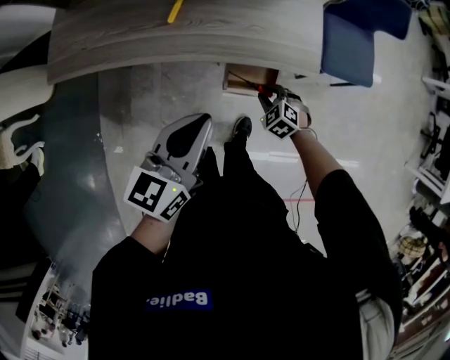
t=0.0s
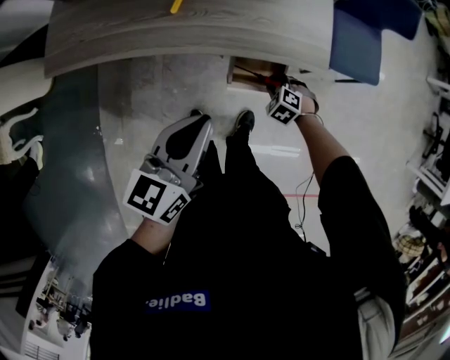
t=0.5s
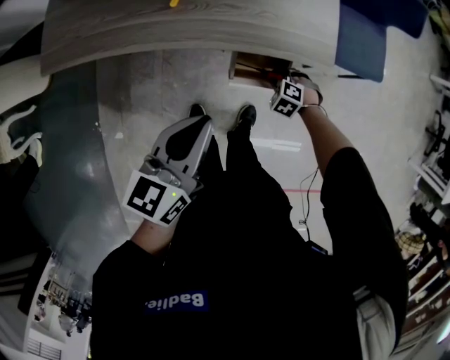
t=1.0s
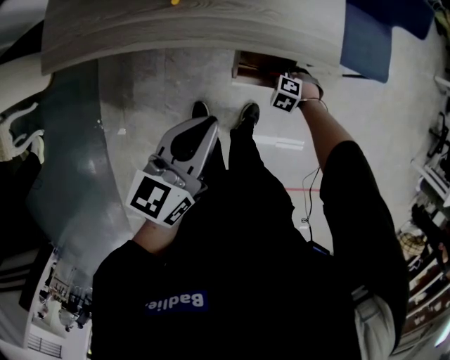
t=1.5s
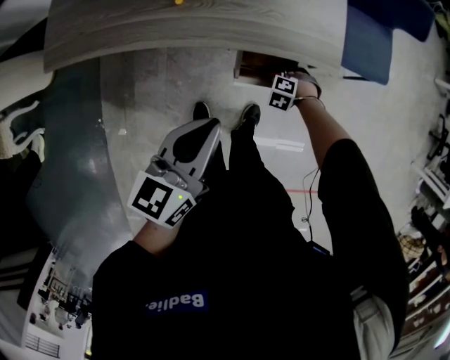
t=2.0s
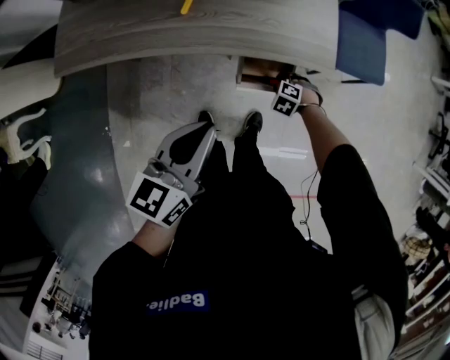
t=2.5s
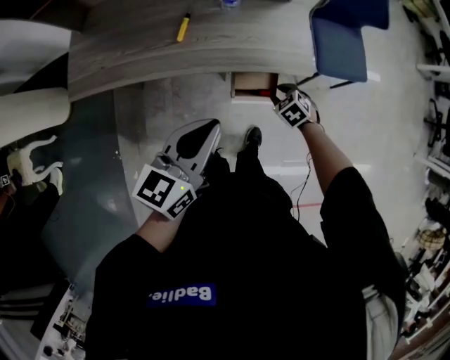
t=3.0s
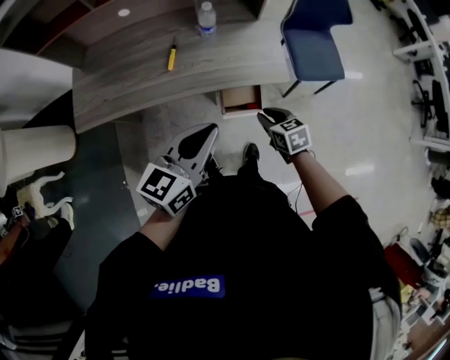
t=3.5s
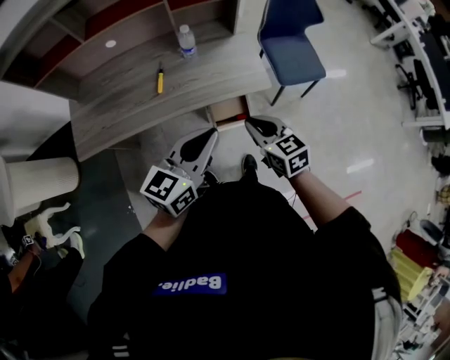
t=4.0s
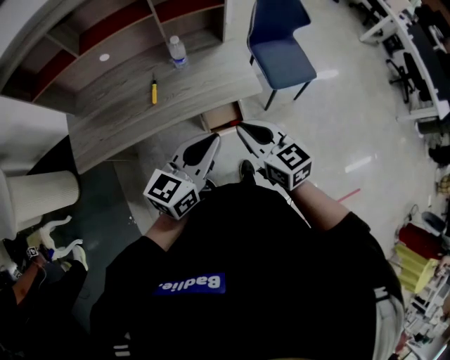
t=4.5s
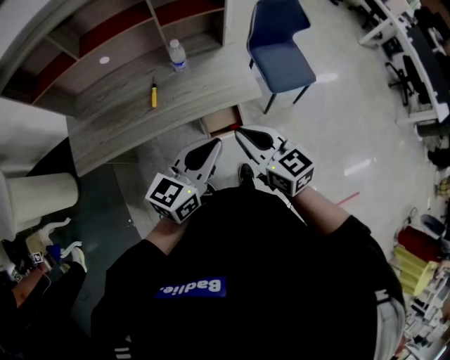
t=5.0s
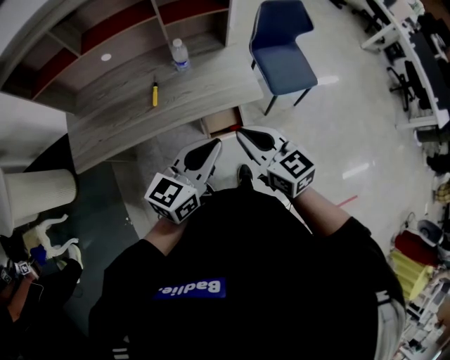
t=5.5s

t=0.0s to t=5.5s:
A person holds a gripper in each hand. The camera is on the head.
t=0.0s to t=2.0s: The right gripper moves downward, about 10 cm, and turns by some 30 degrees.
t=2.0s to t=3.5s: The left gripper shifts approximately 15 cm upward. The right gripper moves upward, some 25 cm, and rolls clockwise, seen from behind, by some 70 degrees.
t=3.5s to t=5.5s: The right gripper is displaced upward by approximately 25 cm, and points its fingers roughly 30 degrees further upward; the left gripper heads to the right, covering about 5 cm.

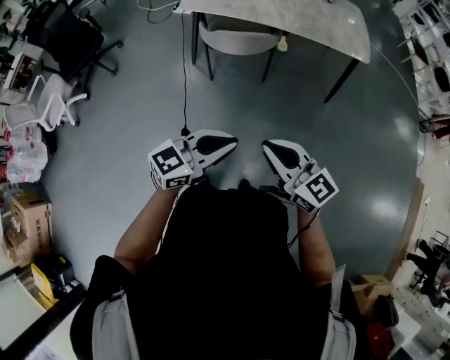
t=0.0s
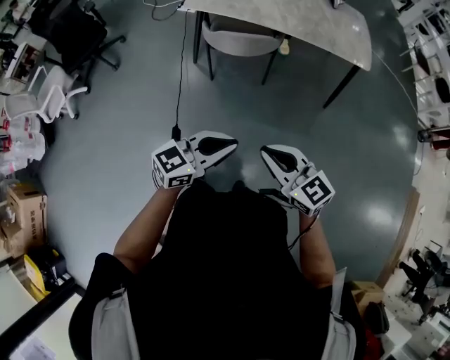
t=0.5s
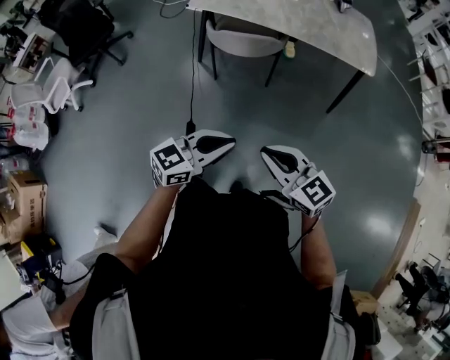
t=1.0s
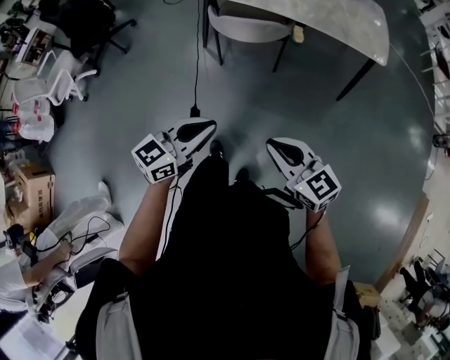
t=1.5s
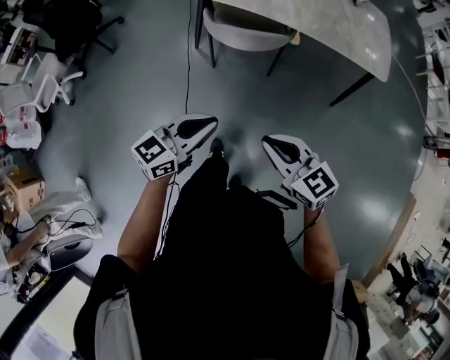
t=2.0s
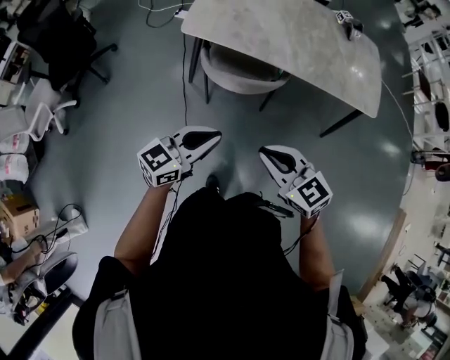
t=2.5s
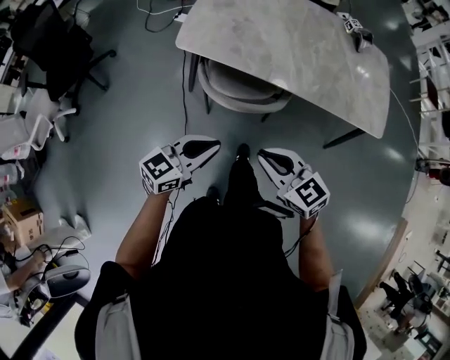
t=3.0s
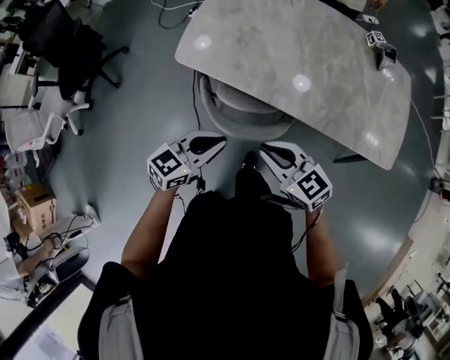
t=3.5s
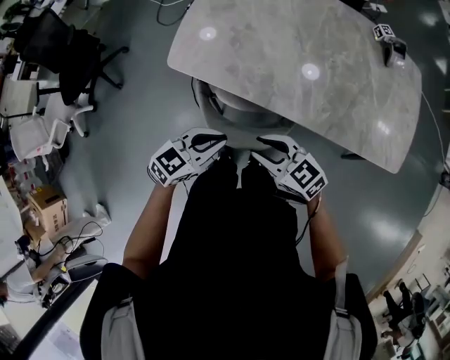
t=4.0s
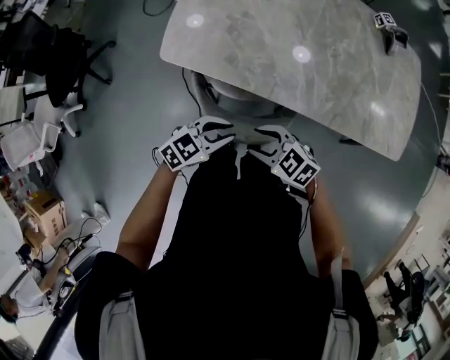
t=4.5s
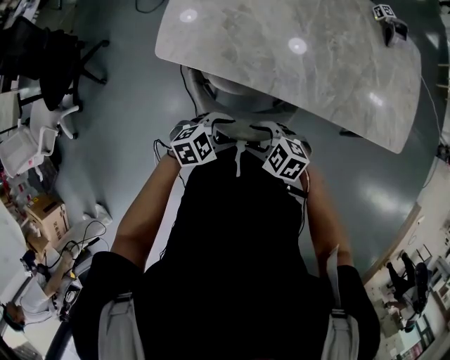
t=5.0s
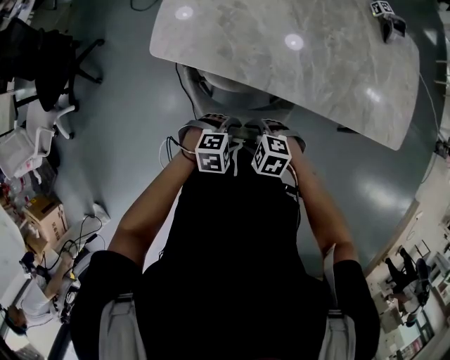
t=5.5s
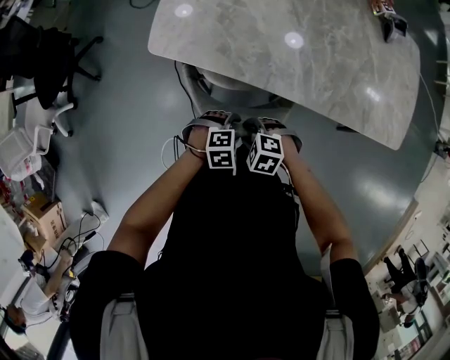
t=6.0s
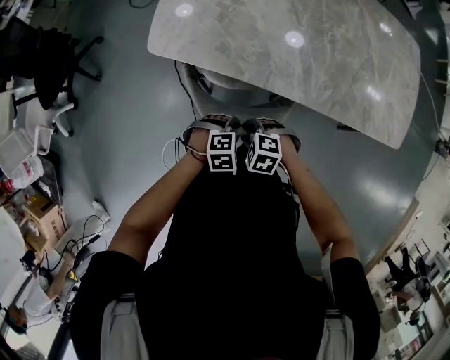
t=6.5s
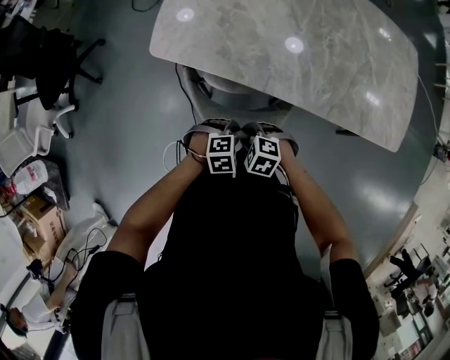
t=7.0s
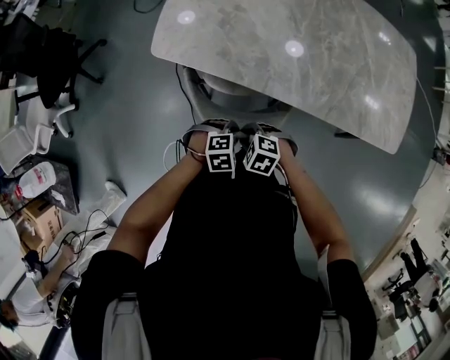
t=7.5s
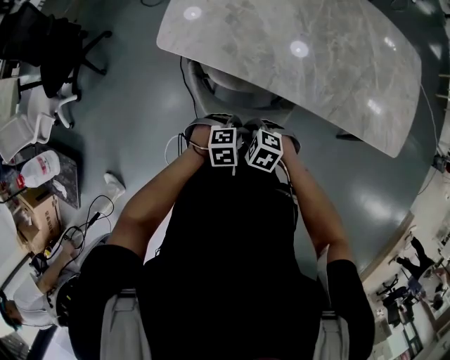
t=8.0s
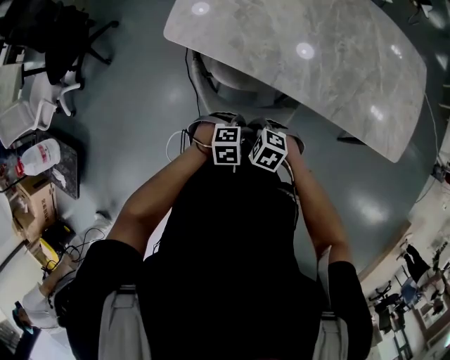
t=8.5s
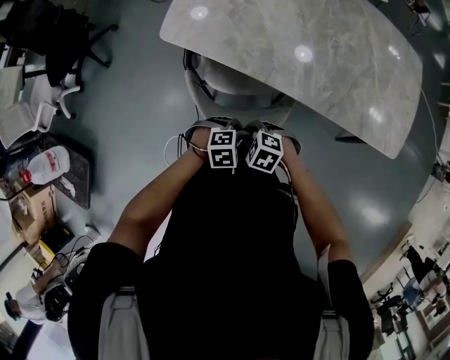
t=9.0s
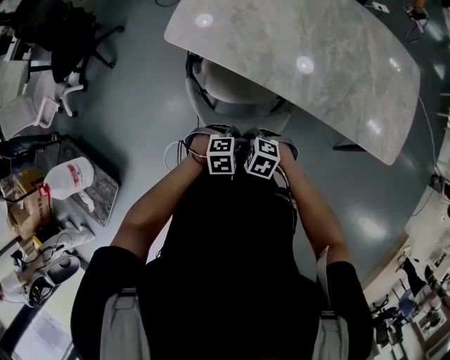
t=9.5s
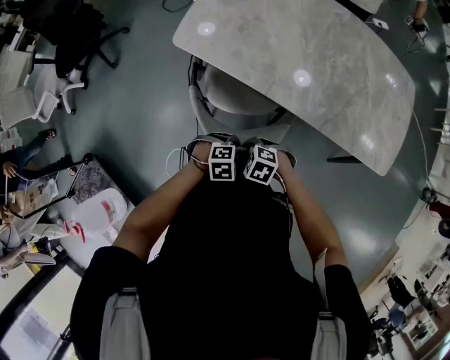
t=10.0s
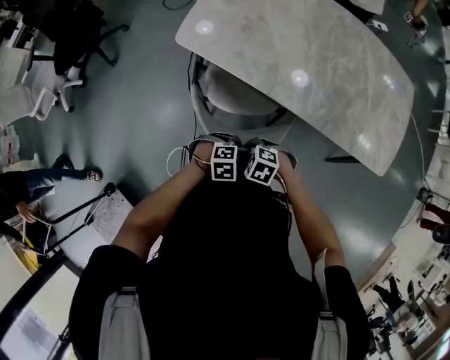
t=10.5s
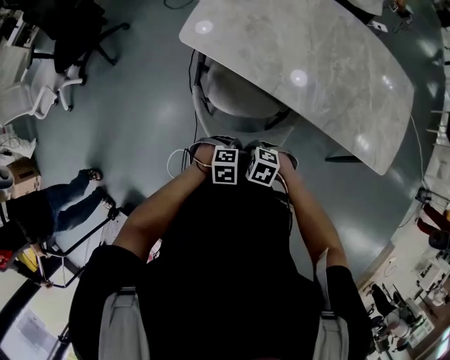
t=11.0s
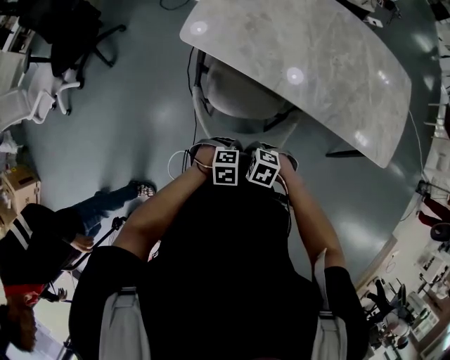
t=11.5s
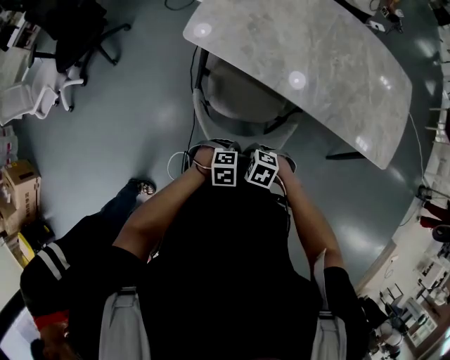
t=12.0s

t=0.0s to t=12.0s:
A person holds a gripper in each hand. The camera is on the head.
t=0.0s to t=2.0s: The right gripper moves forward and downward, roughly 15 cm; the left gripper heads forward, covering some 15 cm.
t=2.0s to t=4.0s: Both grippers are carried roughly 40 cm. The right gripper opens. The left gripper rotates roughly 20 degrees.
t=4.0s to t=6.0s: The grippers both shift downward by some 15 cm. The left gripper points its fingers roughly 40 degrees further downward, and opens its fingers, while the right gripper tilts its fingers about 40 degrees downward.
t=6.0s to t=8.0s: The left gripper closes its fingers.
t=8.0s to t=10.0s: The left gripper changes place by roughly 10 cm, while the right gripper ends up some 10 cm from where it was.
t=10.0s to t=12.0s: The right gripper ends up about 5 cm from where it was. The left gripper ends up approximately 5 cm from where it was.

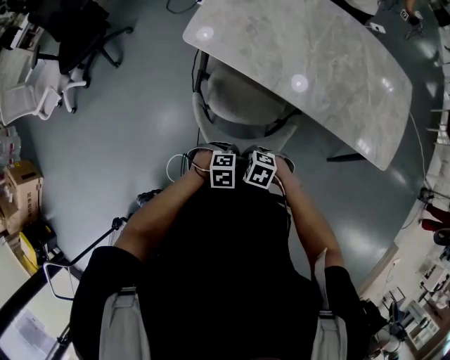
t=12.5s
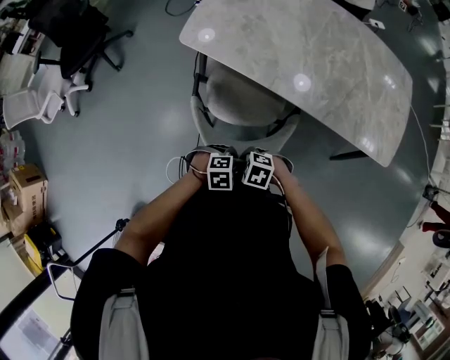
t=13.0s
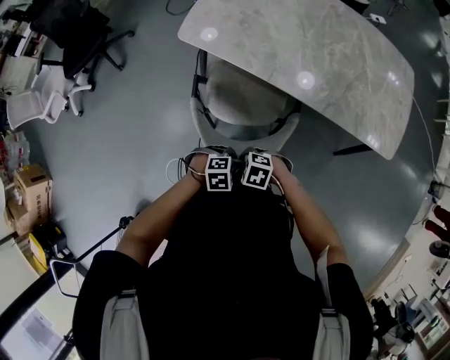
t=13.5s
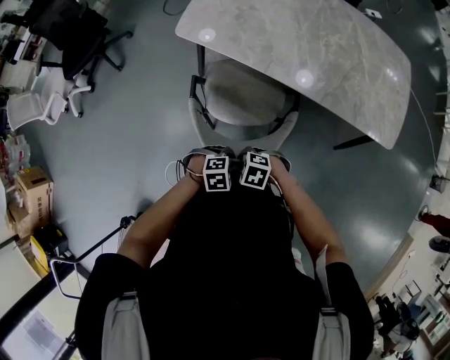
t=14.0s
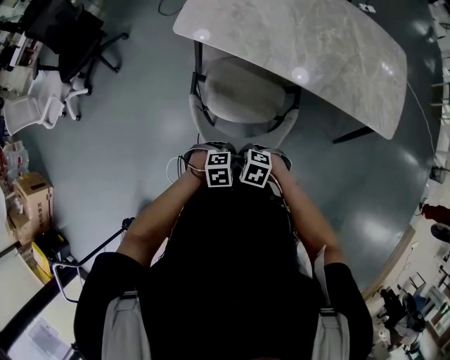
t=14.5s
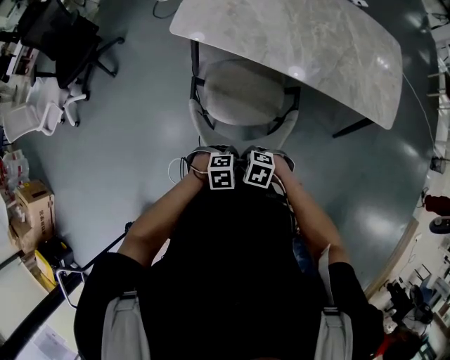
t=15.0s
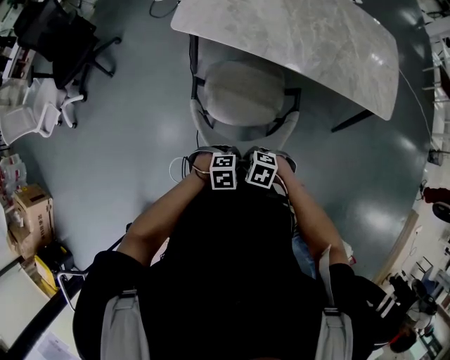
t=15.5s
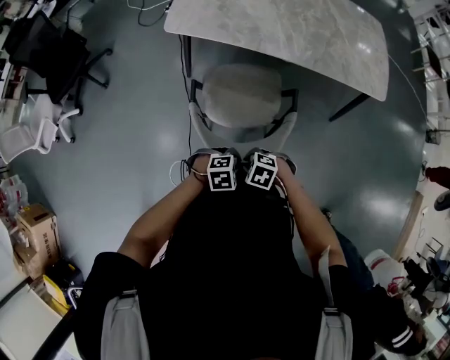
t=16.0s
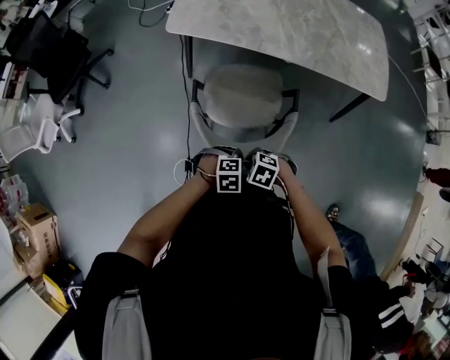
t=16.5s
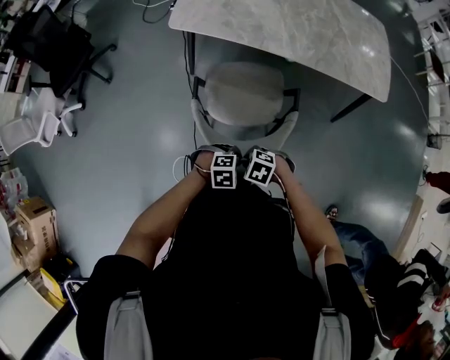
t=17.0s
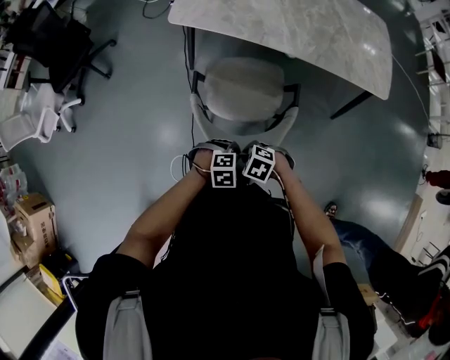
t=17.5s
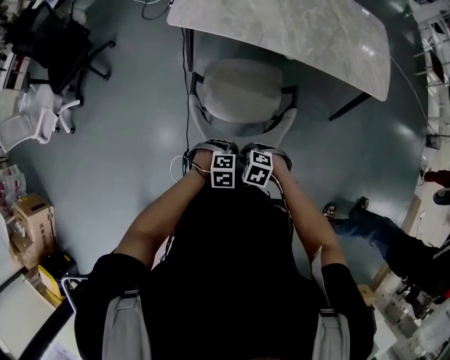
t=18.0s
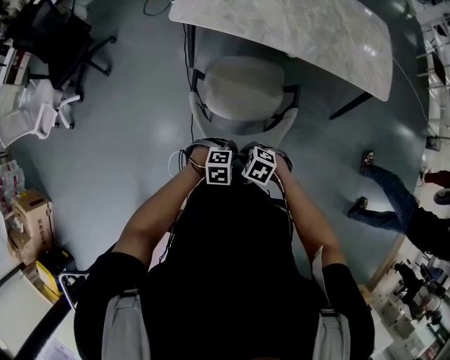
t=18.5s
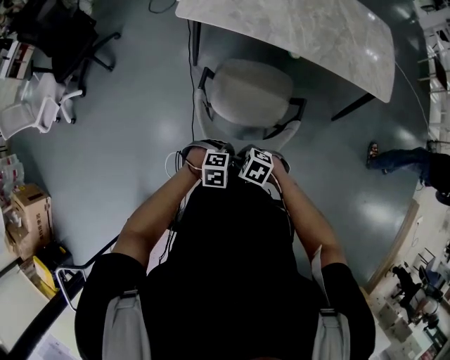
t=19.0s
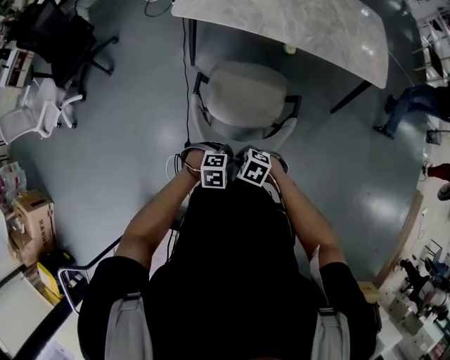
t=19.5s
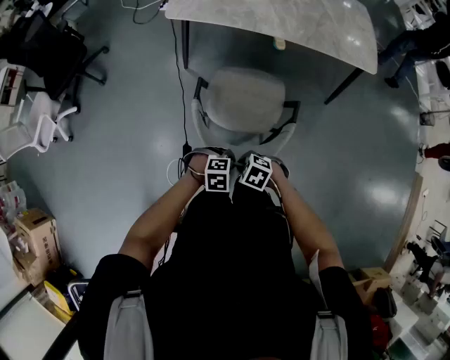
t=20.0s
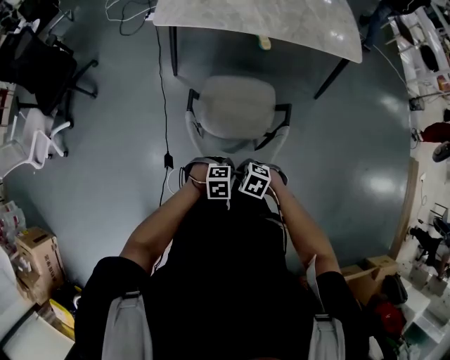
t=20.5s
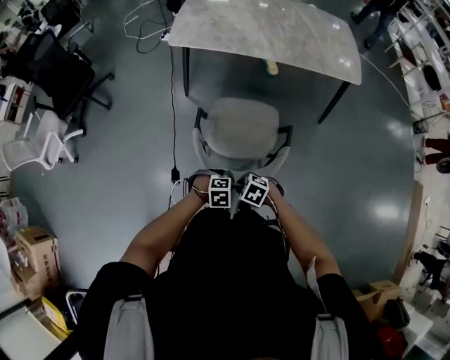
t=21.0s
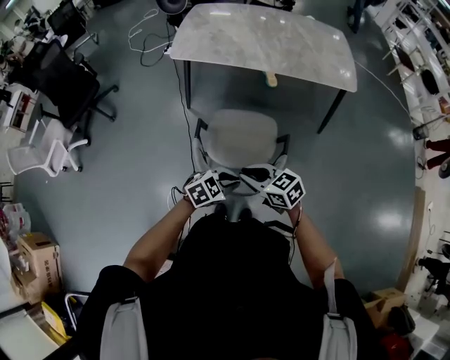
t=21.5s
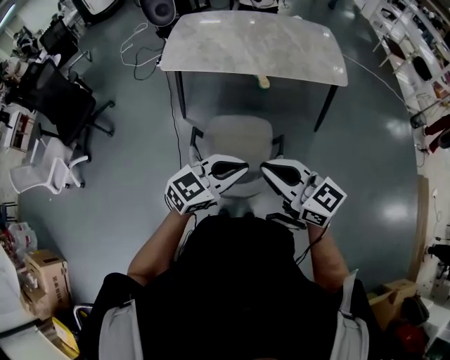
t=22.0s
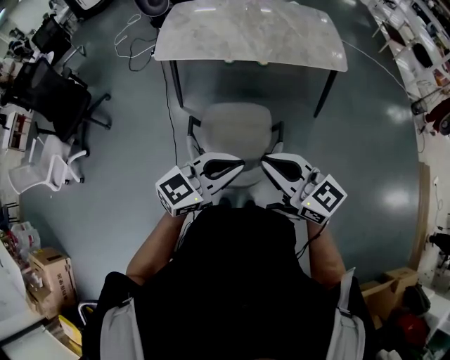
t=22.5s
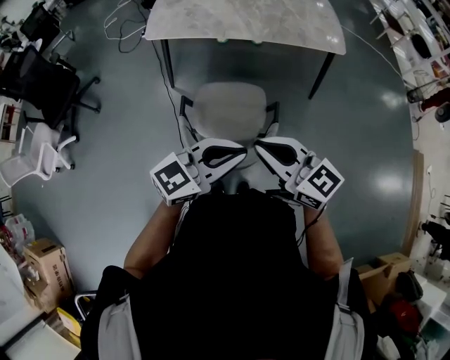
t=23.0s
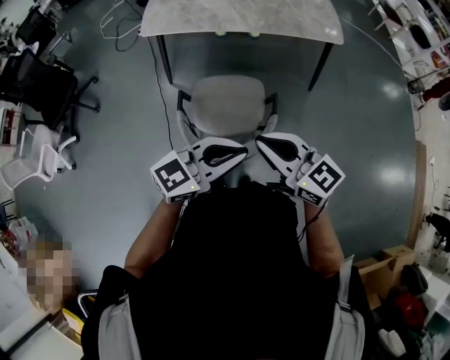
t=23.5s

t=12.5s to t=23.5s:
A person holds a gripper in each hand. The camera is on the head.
t=12.5s to t=14.5s: The left gripper changes place by about 10 cm; the right gripper moves some 5 cm.
t=14.5s to t=16.0s: The left gripper moves about 10 cm; the right gripper moves approximately 10 cm.
t=16.0s to t=18.0s: There are only small adjustments of the grippers.
t=18.0s to t=20.0s: The left gripper ends up approximately 15 cm from where it was, while the right gripper changes place by some 15 cm.
t=20.0s to t=21.5s: Both grippers travel together upward, about 15 cm. The right gripper tips its fingers upward by roughly 40 degrees, while the left gripper swivels some 30 degrees.
t=21.5s to t=23.5s: The grippers both shift upward by about 20 cm. The left gripper tilts its fingers approximately 40 degrees upward. The right gripper turns by roughly 30 degrees.
